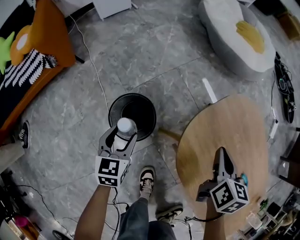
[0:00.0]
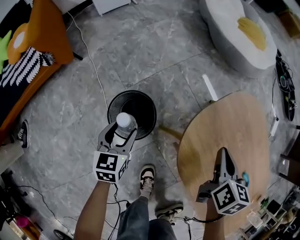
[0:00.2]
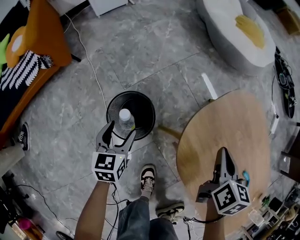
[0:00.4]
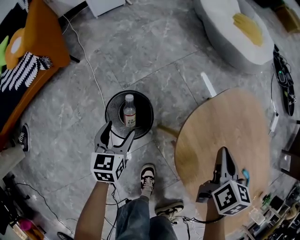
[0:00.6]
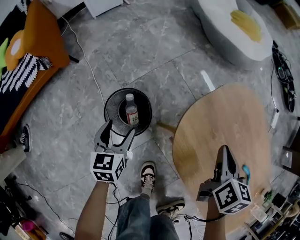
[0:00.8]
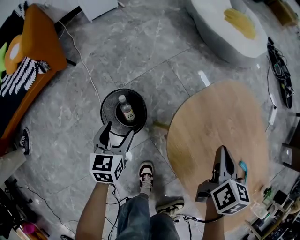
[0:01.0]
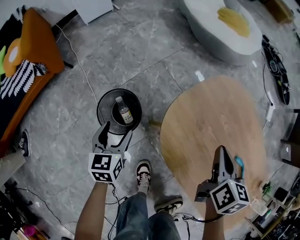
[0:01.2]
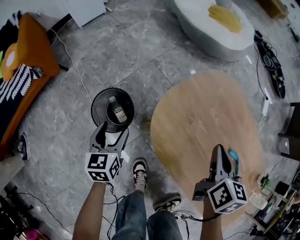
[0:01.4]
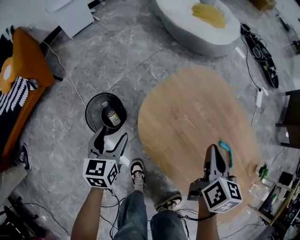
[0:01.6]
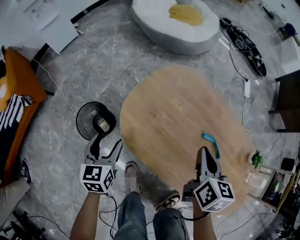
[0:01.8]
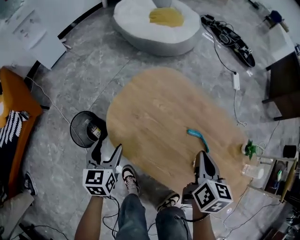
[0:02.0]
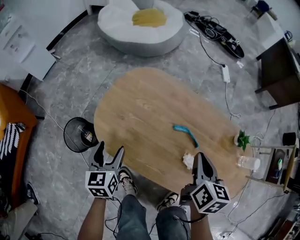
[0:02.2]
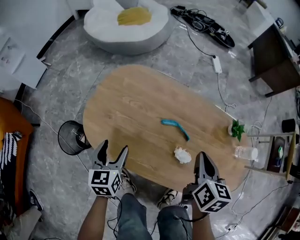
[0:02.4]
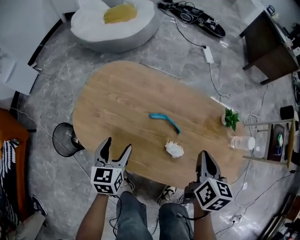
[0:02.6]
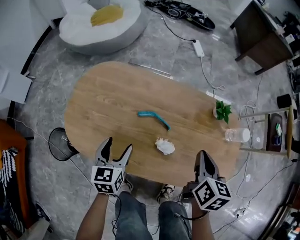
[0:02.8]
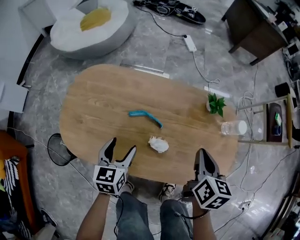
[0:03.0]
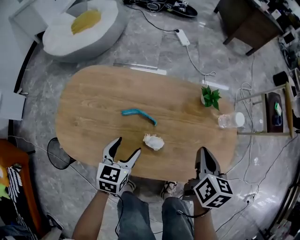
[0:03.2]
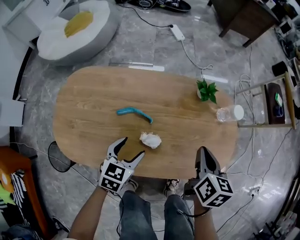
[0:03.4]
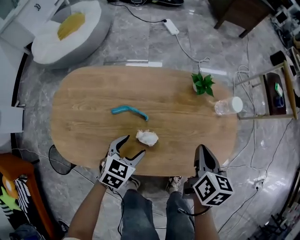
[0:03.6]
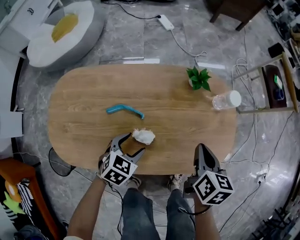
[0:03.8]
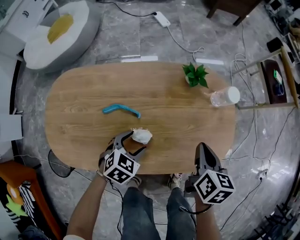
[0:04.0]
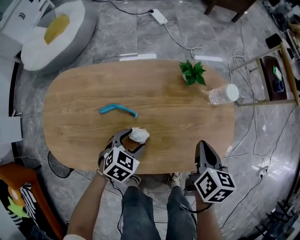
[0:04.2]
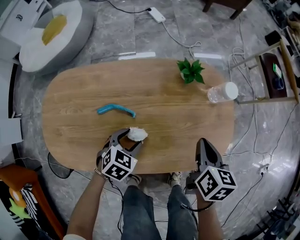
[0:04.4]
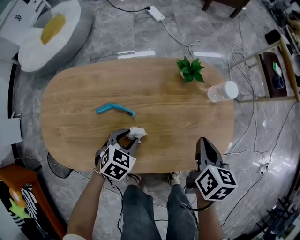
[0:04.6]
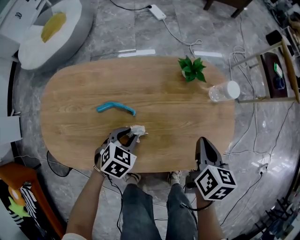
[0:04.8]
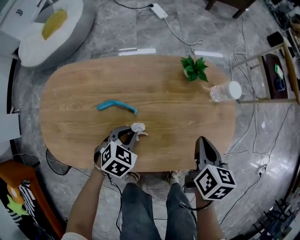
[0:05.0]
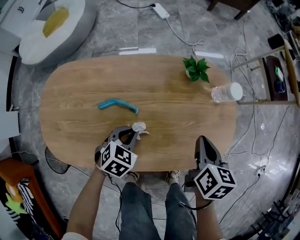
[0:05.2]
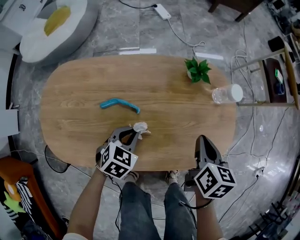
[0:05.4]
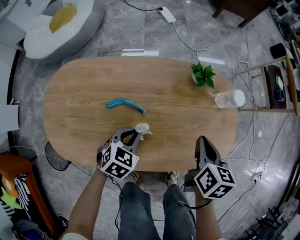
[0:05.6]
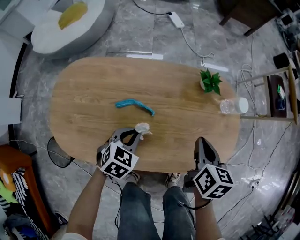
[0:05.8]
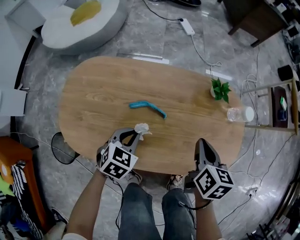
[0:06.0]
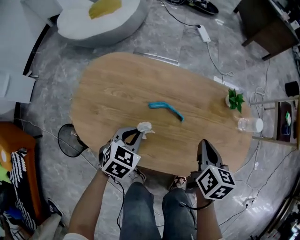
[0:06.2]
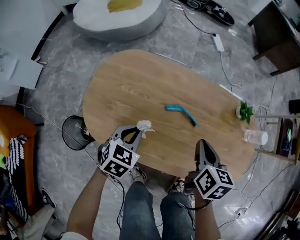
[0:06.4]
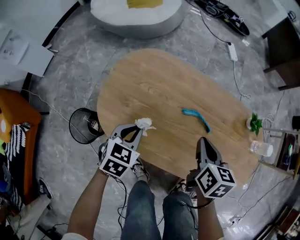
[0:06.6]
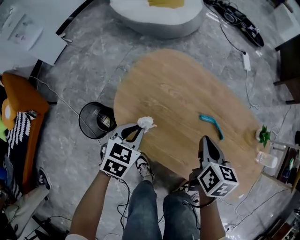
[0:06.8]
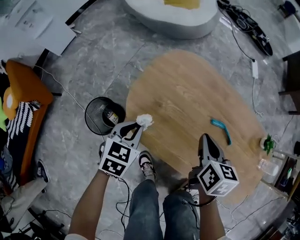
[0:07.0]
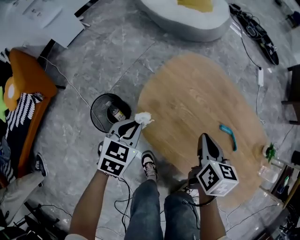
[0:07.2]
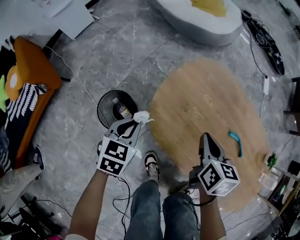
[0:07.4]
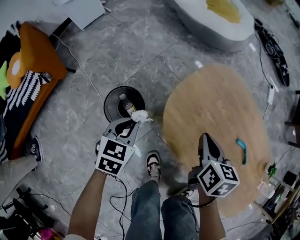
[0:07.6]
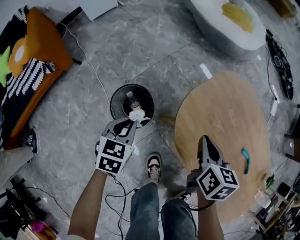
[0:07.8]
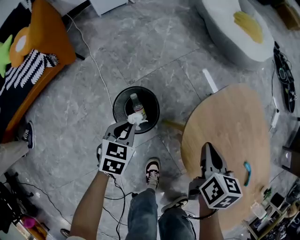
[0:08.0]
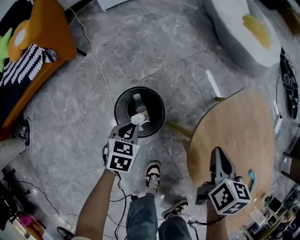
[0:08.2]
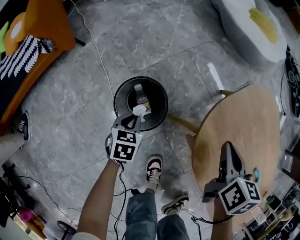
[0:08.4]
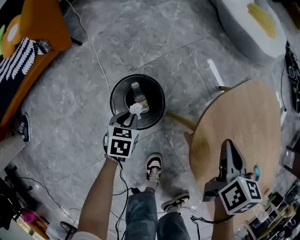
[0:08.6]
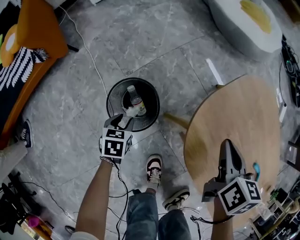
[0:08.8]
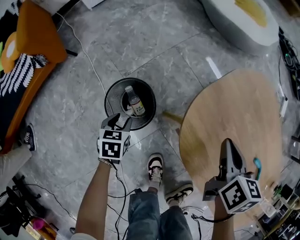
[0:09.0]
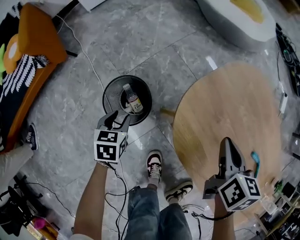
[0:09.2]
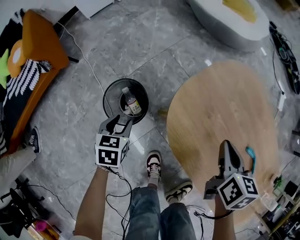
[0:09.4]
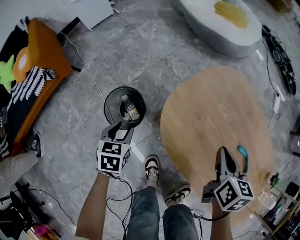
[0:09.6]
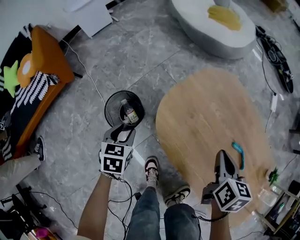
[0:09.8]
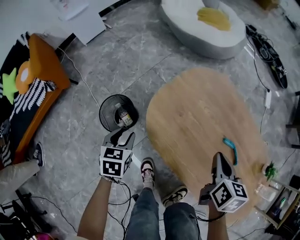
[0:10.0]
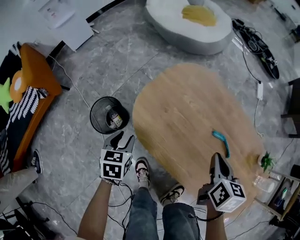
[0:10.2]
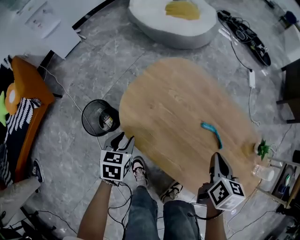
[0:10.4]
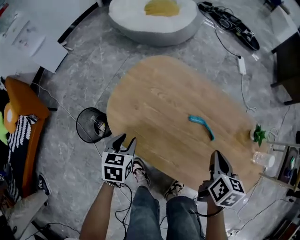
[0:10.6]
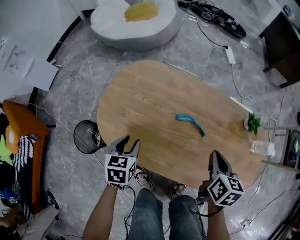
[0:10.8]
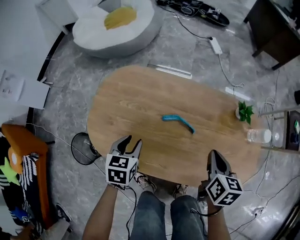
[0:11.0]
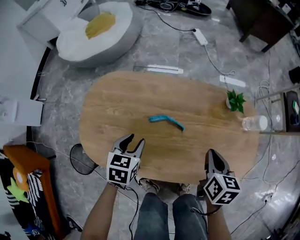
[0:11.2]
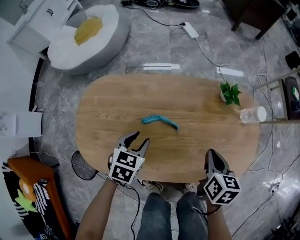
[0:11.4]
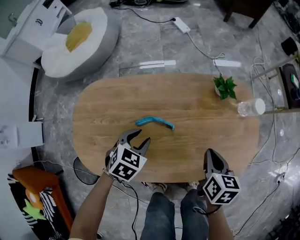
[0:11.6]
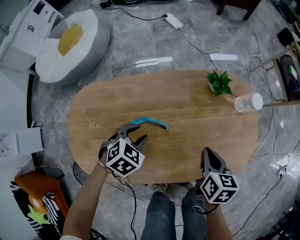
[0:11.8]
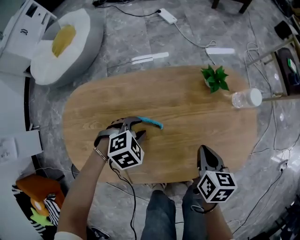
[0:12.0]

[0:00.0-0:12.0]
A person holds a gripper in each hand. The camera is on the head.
0:00.0 to 0:01.6: The left gripper goes about 15 cm to the right and upward, while the right gripper travels to the right, backward and upward by approximately 15 cm.
0:01.6 to 0:03.0: The two grippers travel together, approximately 40 cm. The left gripper turns by some 40 degrees; the right gripper turns by approximately 30 degrees.
0:03.0 to 0:04.4: The grippers both shift to the right and downward by about 15 cm. The left gripper swivels about 50 degrees.
0:04.4 to 0:06.0: The left gripper goes roughly 10 cm to the left and upward, and closes up. Meanwhile the right gripper shifts some 10 cm to the left.
0:06.0 to 0:07.6: The two grippers travel together, some 50 cm. The left gripper turns by approximately 50 degrees, while the right gripper turns by approximately 40 degrees.
0:07.6 to 0:09.0: The right gripper moves approximately 5 cm, while the left gripper goes some 20 cm downward and to the left, and swivels approximately 30 degrees.
0:09.0 to 0:10.4: The left gripper moves to the right and upward, roughly 30 cm, and rotates about 20 degrees, while the right gripper travels to the right and backward by some 30 cm.
0:10.4 to 0:12.0: The right gripper ends up some 25 cm from where it was, and changes its angle by some 40 degrees. Meanwhile the left gripper changes place by roughly 40 cm, and twists about 90 degrees clockwise, seen from behind.

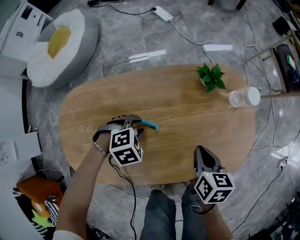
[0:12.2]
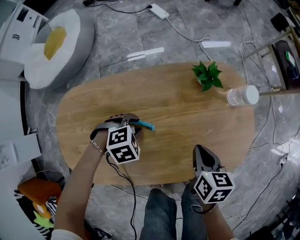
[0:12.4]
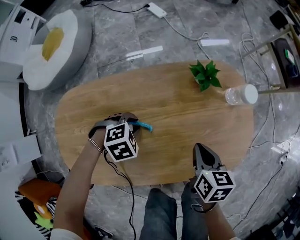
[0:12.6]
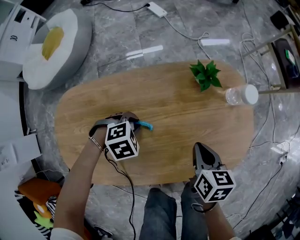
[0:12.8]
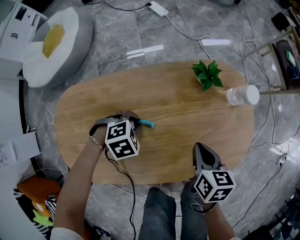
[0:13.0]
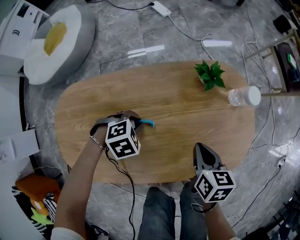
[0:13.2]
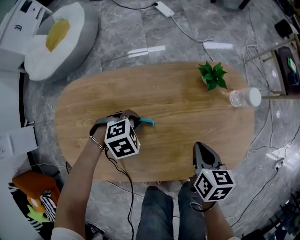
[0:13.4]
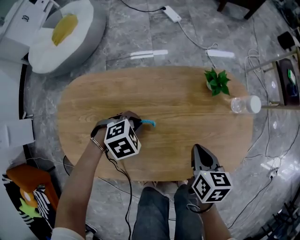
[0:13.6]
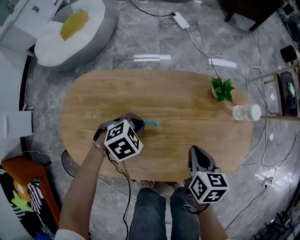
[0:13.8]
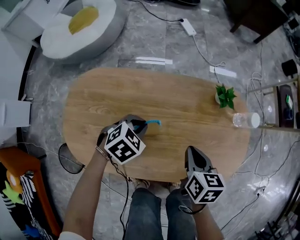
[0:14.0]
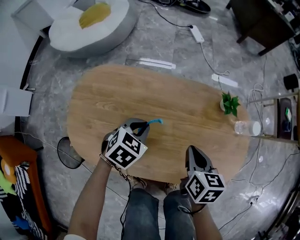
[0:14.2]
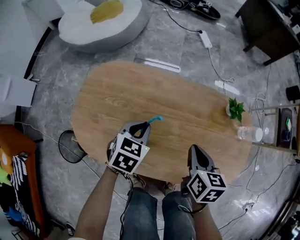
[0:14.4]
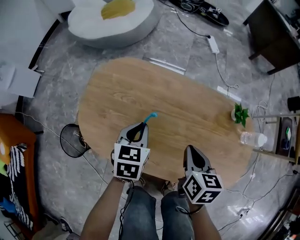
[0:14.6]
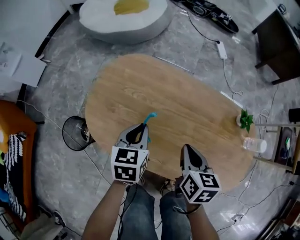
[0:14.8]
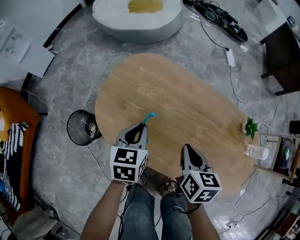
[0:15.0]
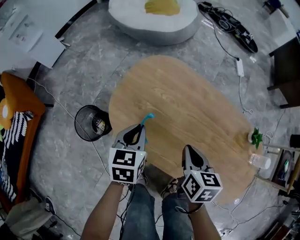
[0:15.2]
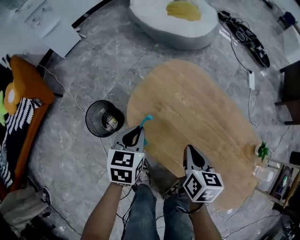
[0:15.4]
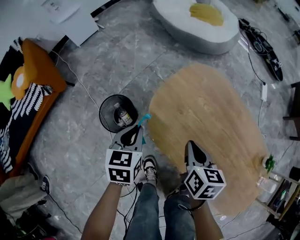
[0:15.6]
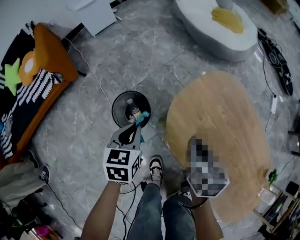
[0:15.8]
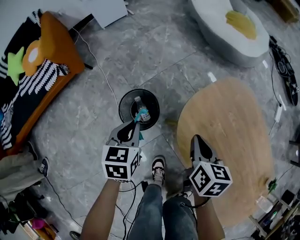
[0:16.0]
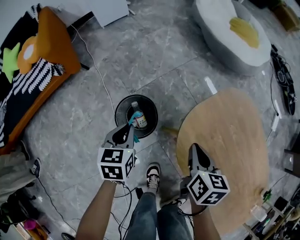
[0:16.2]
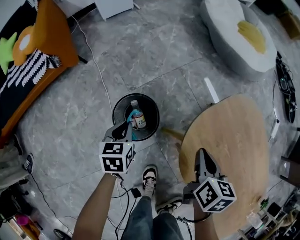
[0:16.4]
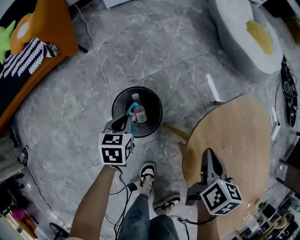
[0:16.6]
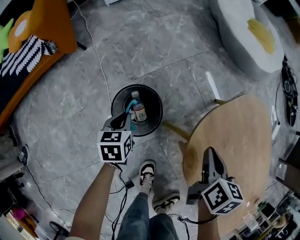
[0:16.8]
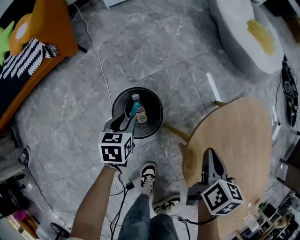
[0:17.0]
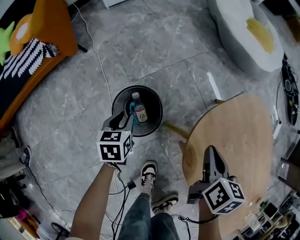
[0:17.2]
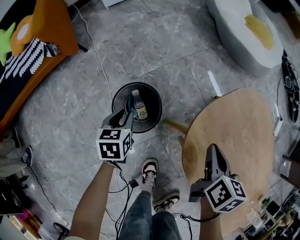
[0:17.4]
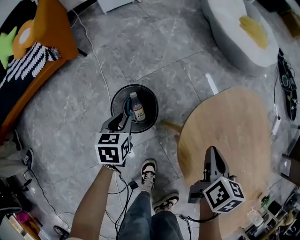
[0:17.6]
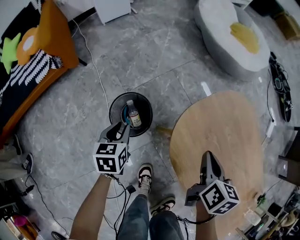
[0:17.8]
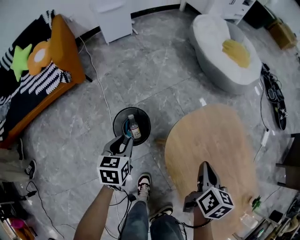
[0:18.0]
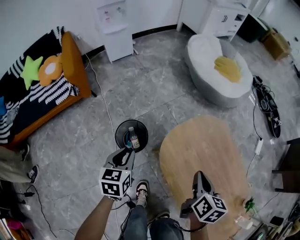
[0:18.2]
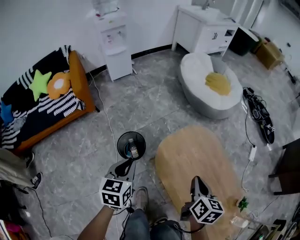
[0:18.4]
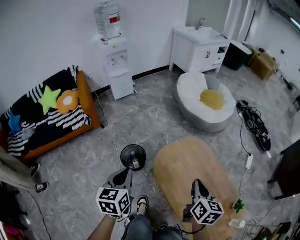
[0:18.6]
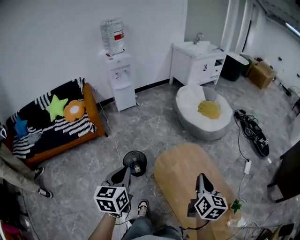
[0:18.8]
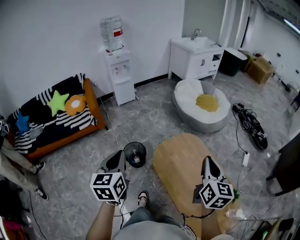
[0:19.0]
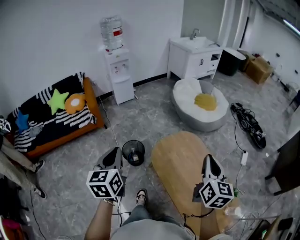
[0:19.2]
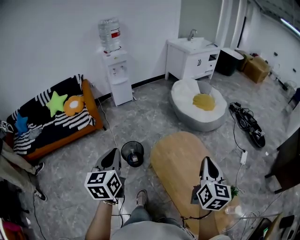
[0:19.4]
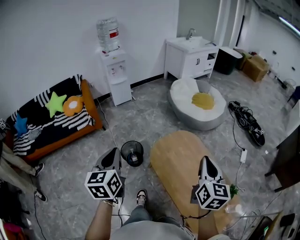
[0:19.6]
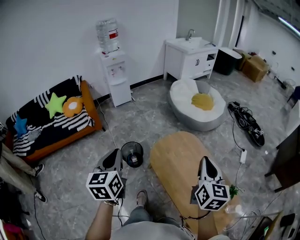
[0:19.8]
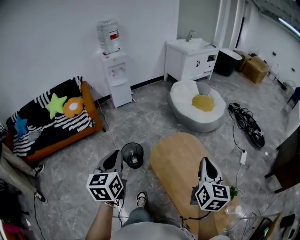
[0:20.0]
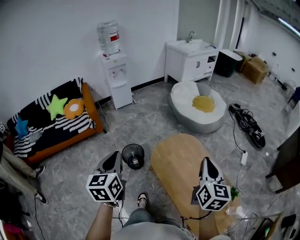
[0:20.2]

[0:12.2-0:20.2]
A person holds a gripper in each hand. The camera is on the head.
0:12.2 to 0:13.8: The left gripper changes its angle by some 20 degrees.
0:13.8 to 0:15.4: The left gripper moves some 35 cm, and rolls counterclockwise, seen from behind, by approximately 80 degrees; the right gripper shifts by roughly 30 cm, and swivels roughly 40 degrees.
0:15.4 to 0:17.0: The left gripper heads to the left and downward, covering approximately 35 cm, and turns by roughly 30 degrees. The right gripper is displaced to the left, forward and downward by about 25 cm.
0:17.0 to 0:18.6: The right gripper heads upward and backward, covering some 40 cm, and swivels about 20 degrees. Meanwhile the left gripper goes roughly 50 cm upward, and changes its angle by some 30 degrees.
0:18.6 to 0:20.2: Both grippers move upward and backward, some 15 cm. The right gripper changes its angle by about 20 degrees.

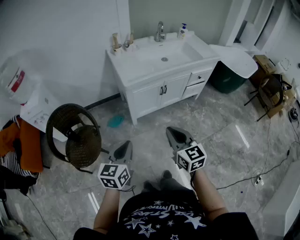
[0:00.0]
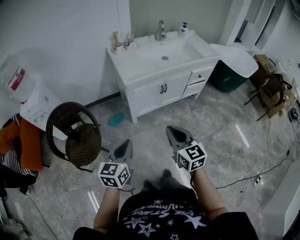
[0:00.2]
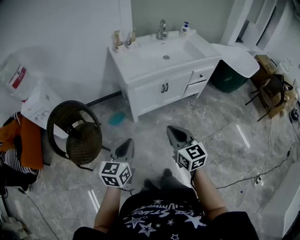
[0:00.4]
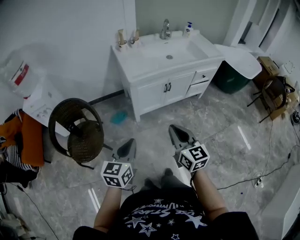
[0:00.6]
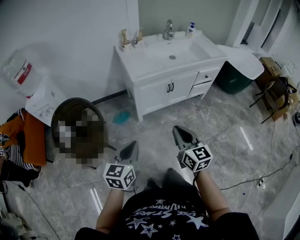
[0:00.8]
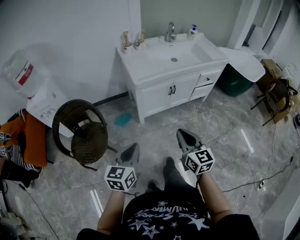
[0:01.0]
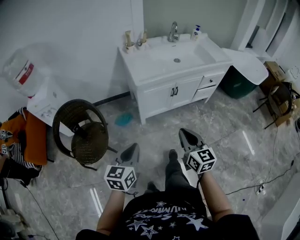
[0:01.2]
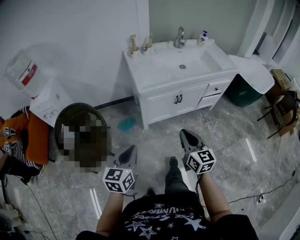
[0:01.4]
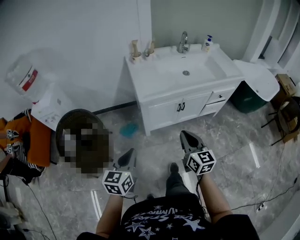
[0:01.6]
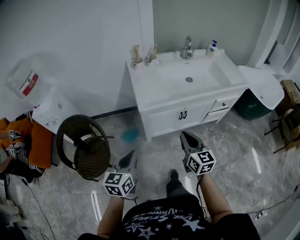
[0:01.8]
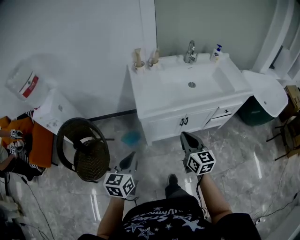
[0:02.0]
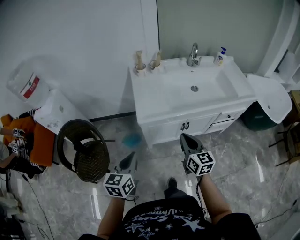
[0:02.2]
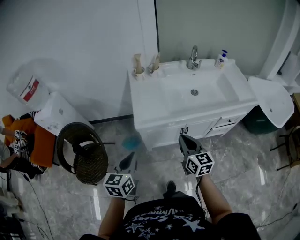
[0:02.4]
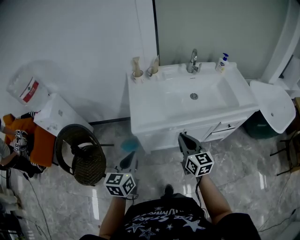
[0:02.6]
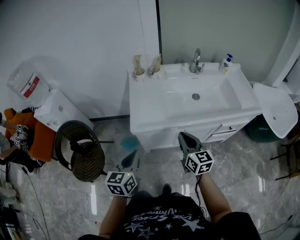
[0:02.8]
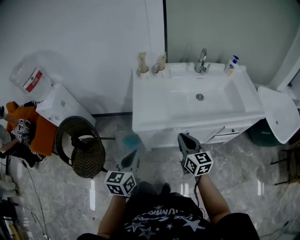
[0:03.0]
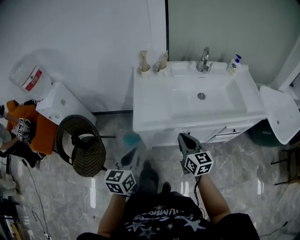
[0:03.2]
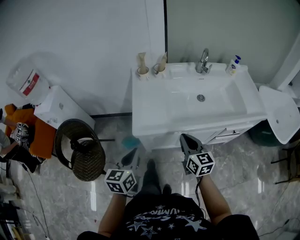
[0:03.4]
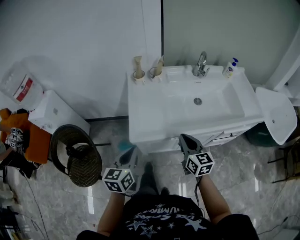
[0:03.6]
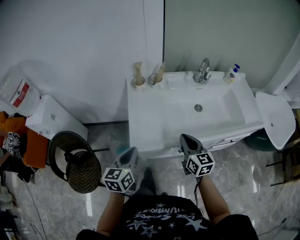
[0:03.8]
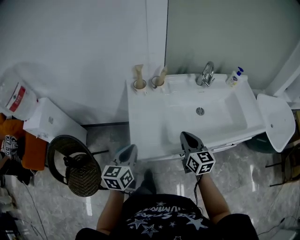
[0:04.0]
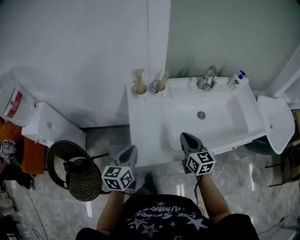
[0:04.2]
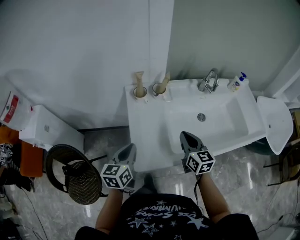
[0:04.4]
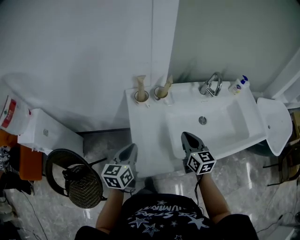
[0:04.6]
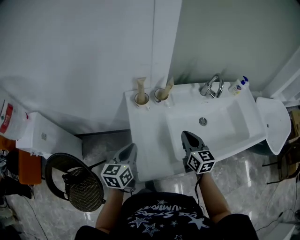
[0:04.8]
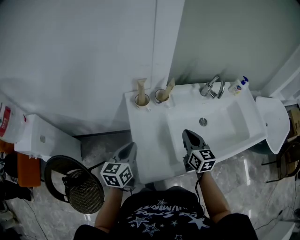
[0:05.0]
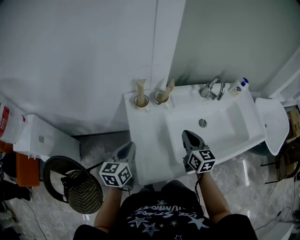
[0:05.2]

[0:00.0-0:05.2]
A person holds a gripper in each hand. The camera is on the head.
0:00.0 to 0:01.8: The two grippers go some 20 cm forward.
0:01.8 to 0:03.4: The left gripper travels forward and to the right by approximately 20 cm. Meanwhile the right gripper moves forward, about 20 cm.
0:03.4 to 0:05.2: The two grippers go some 30 cm forward.
